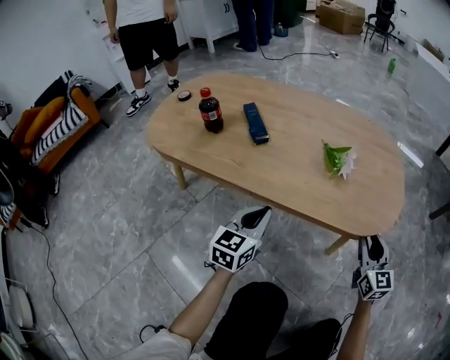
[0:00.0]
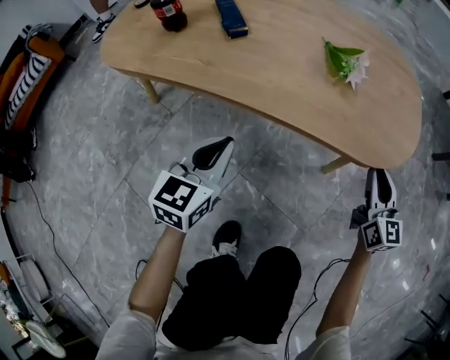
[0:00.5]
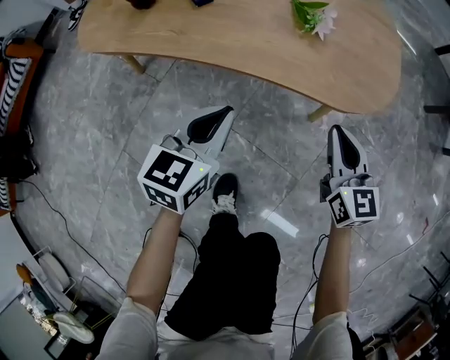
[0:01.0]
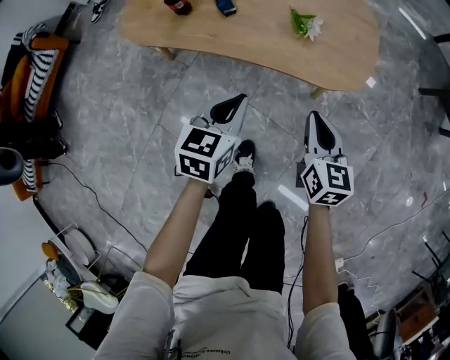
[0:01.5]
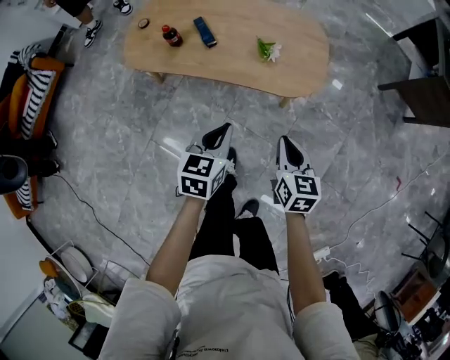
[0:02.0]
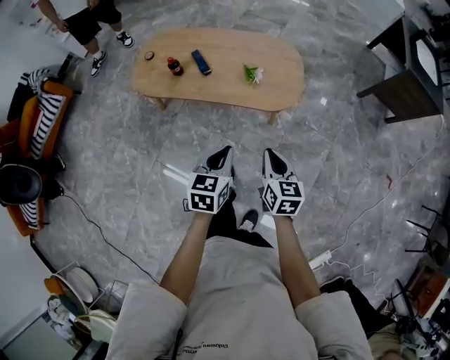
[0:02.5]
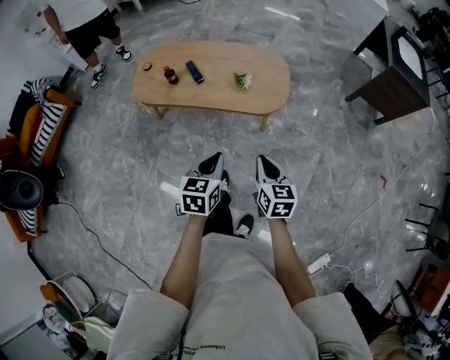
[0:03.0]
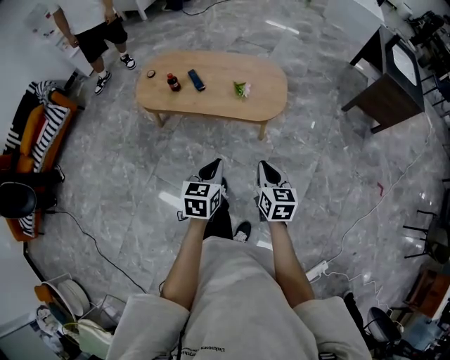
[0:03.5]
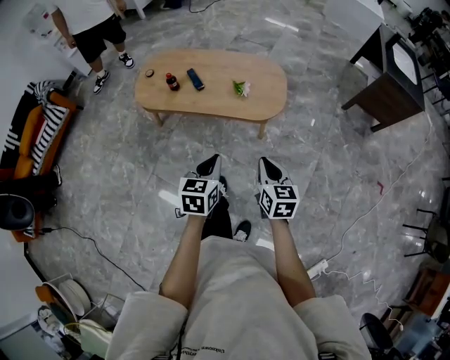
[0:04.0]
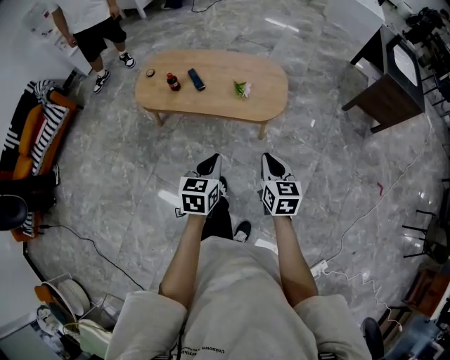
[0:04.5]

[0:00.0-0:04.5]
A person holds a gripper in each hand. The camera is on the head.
0:00.0 to 0:02.0: Both grippers travel together upward and backward, some 40 cm. The right gripper turns by some 30 degrees, and closes up; the left gripper changes its angle by about 20 degrees.
0:02.0 to 0:04.5: The grippers both shift upward and backward by approximately 20 cm.

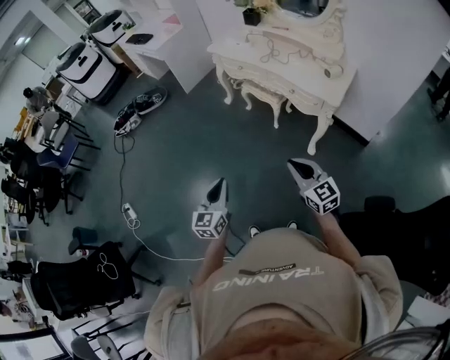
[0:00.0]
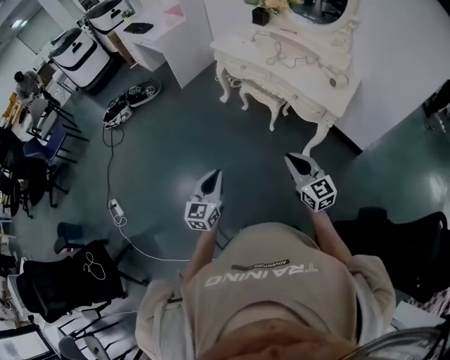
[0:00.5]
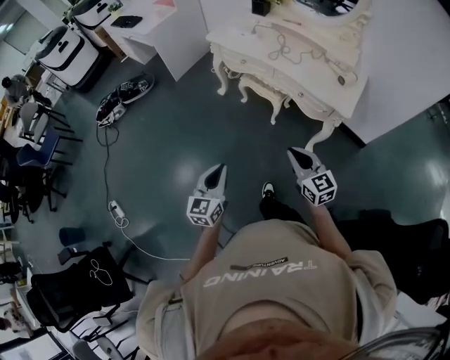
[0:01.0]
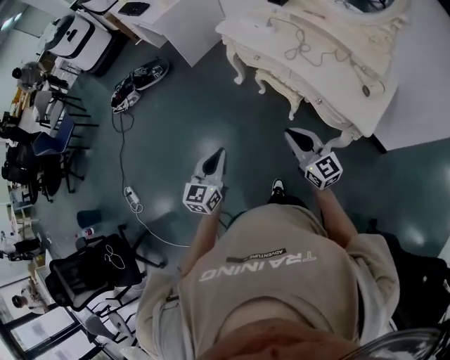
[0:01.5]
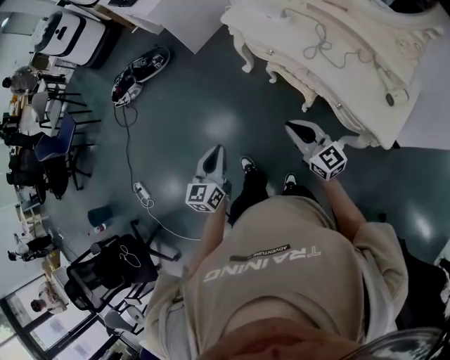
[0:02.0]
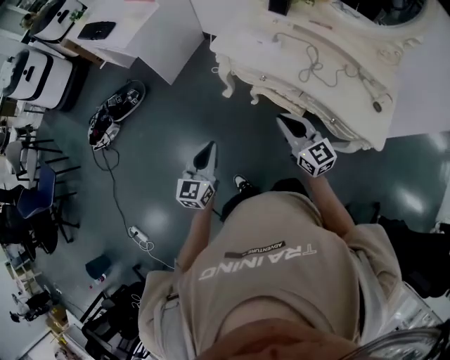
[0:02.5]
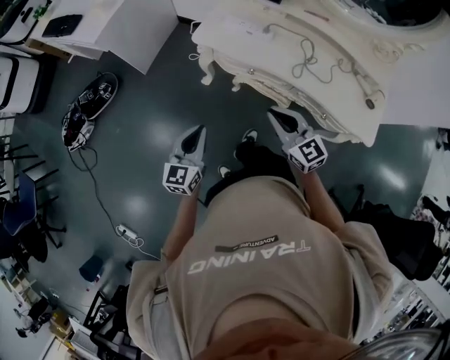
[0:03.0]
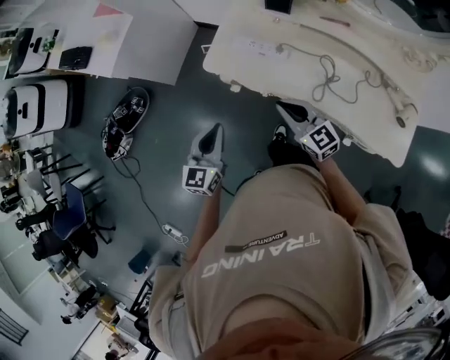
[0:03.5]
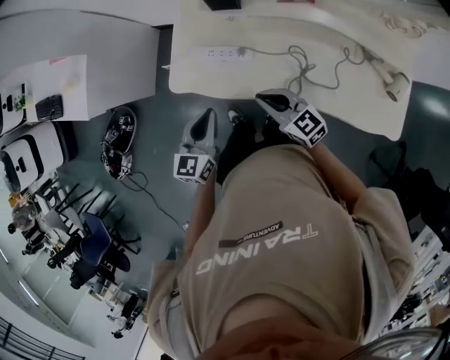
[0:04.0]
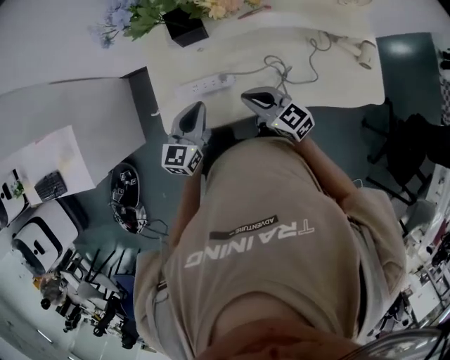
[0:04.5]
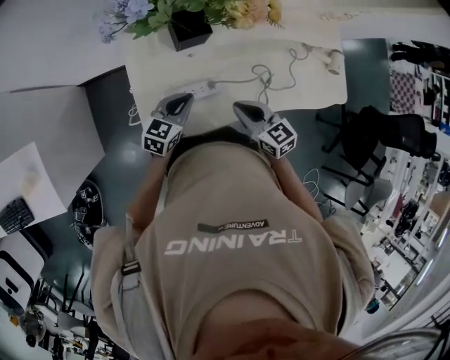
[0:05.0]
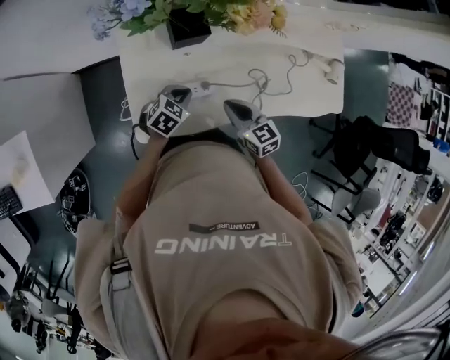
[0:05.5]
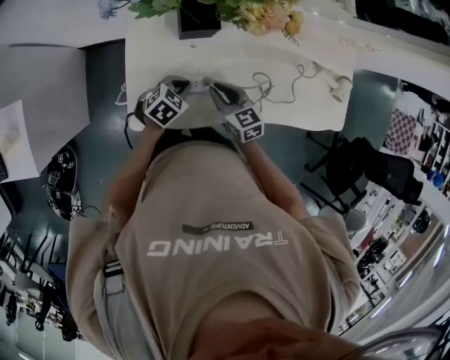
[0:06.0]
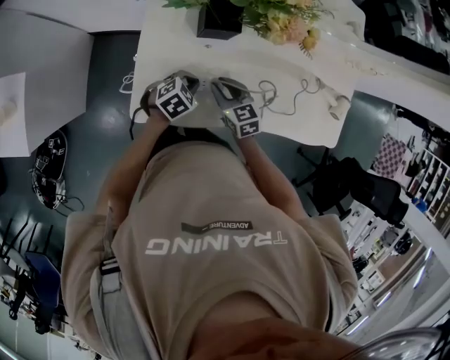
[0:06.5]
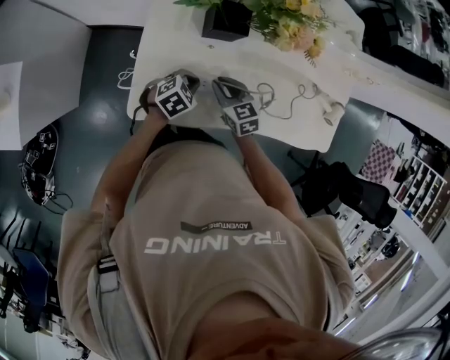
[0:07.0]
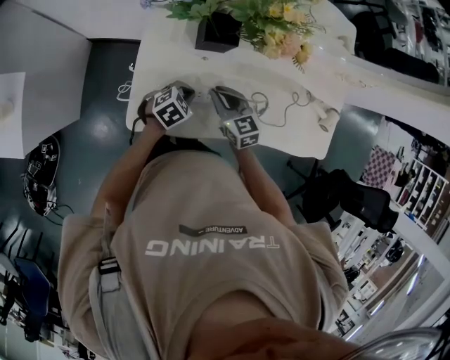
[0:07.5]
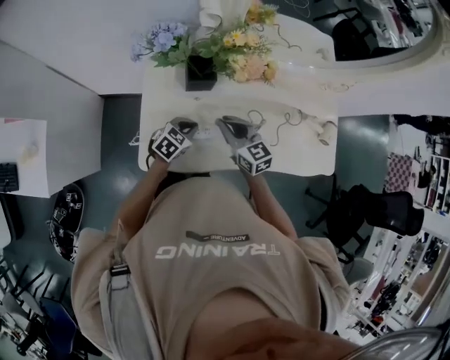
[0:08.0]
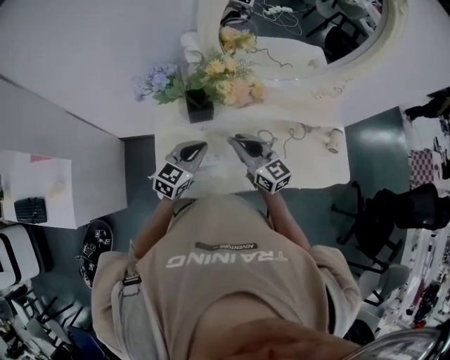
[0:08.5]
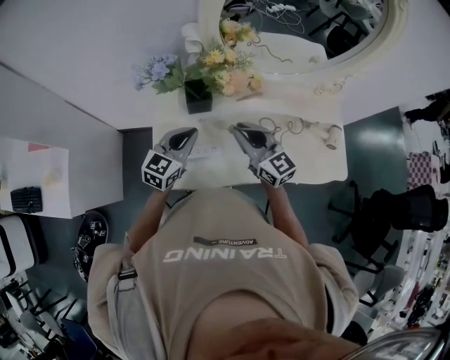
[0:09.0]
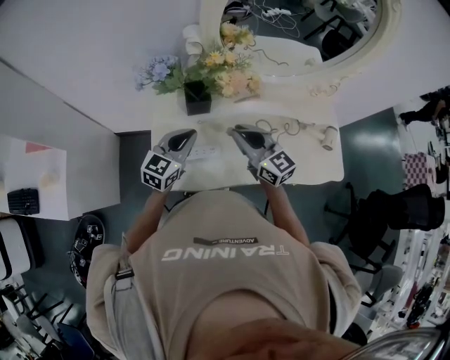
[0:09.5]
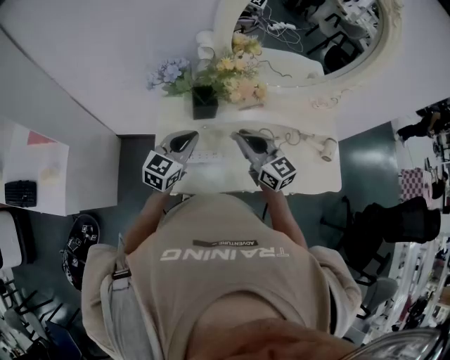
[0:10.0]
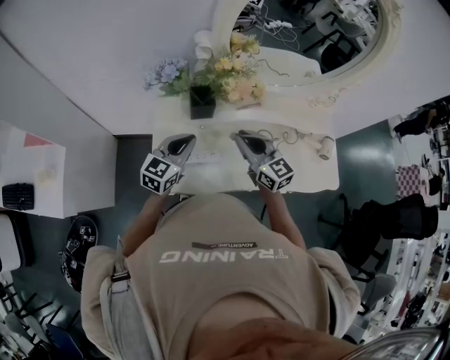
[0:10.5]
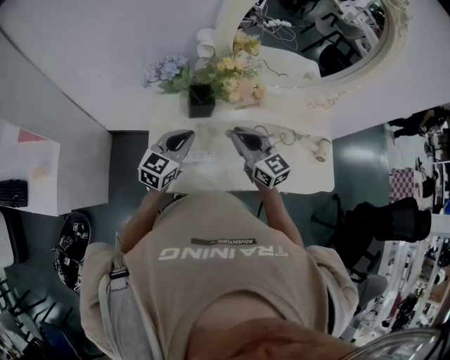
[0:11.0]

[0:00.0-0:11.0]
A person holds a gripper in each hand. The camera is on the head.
0:00.0 to 0:02.0: Both grippers are carried forward, some 50 cm.
0:02.0 to 0:03.5: The two grippers go some 40 cm forward. The left gripper rotates about 30 degrees.
0:03.5 to 0:05.5: The right gripper ends up about 20 cm from where it was, and turns by approximately 40 degrees. The left gripper changes place by some 40 cm, and tilts its fingers some 30 degrees downward.
0:05.5 to 0:07.5: The right gripper heads forward and to the left, covering some 10 cm.
0:07.5 to 0:09.0: Both grippers travel together upward, approximately 25 cm. The left gripper points its fingers roughly 40 degrees further upward. Meanwhile the right gripper rotates some 30 degrees.
0:09.0 to 0:11.0: The grippers stay close to where they were, moving slightly.

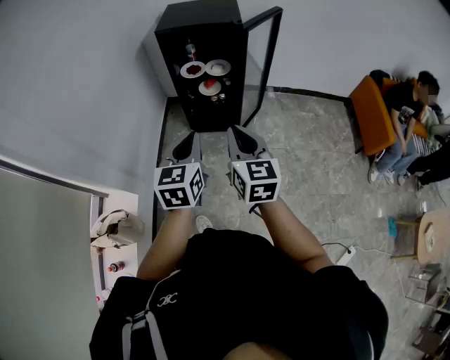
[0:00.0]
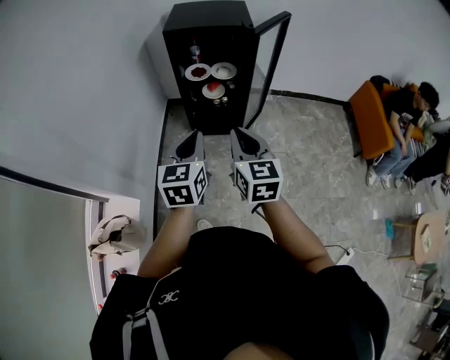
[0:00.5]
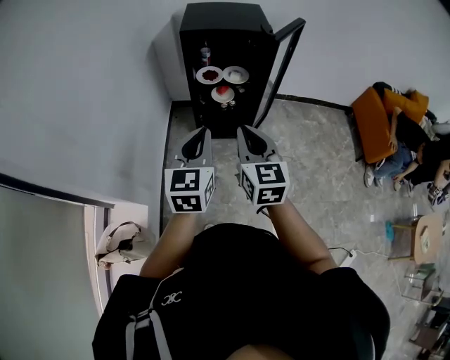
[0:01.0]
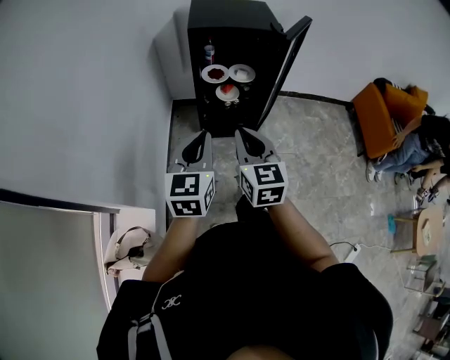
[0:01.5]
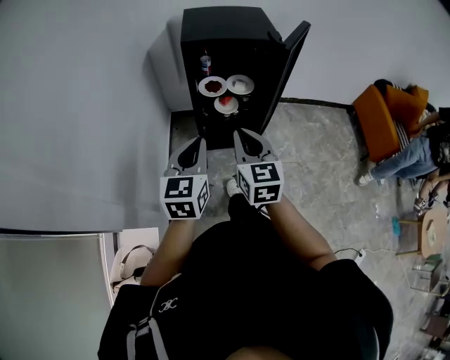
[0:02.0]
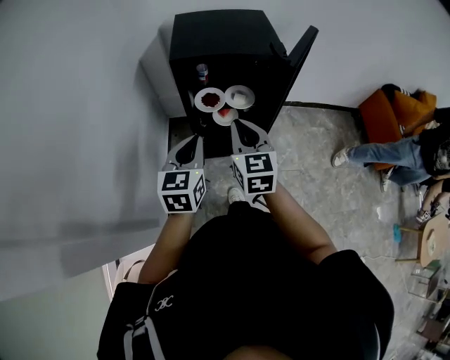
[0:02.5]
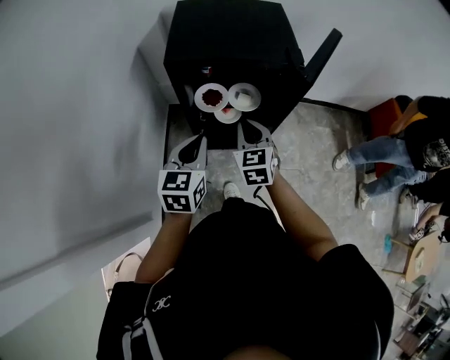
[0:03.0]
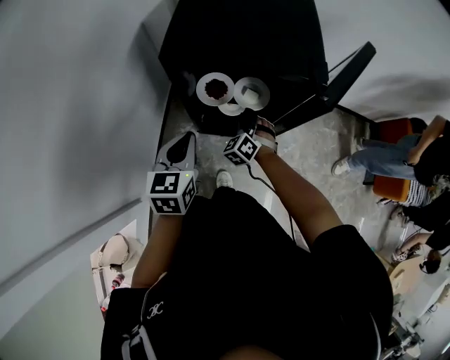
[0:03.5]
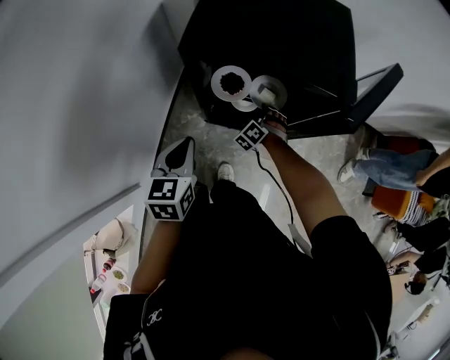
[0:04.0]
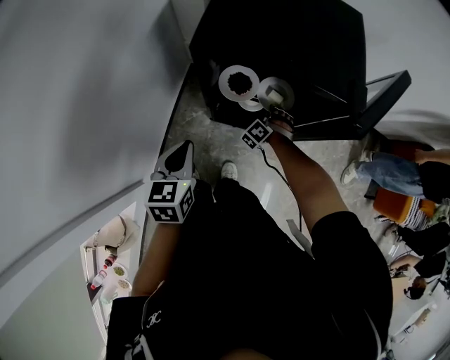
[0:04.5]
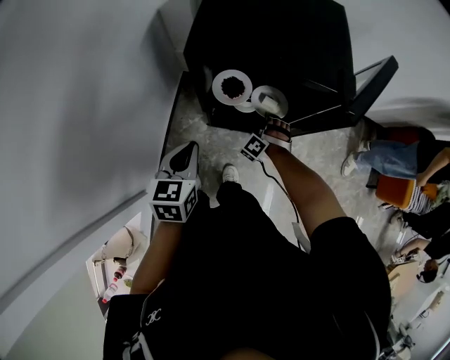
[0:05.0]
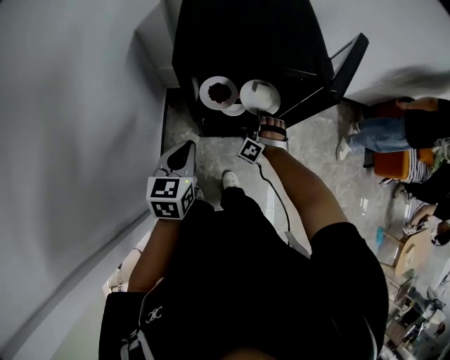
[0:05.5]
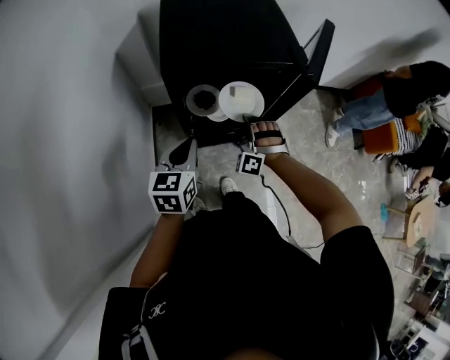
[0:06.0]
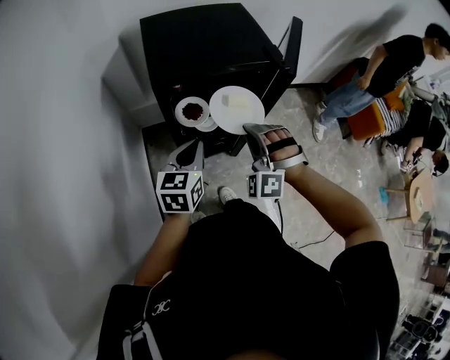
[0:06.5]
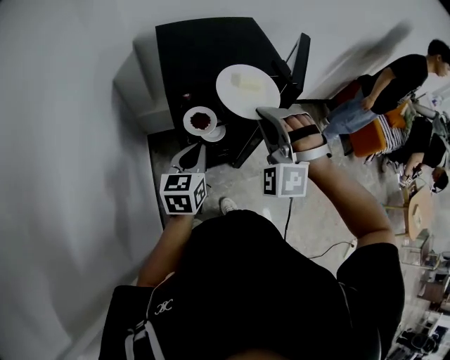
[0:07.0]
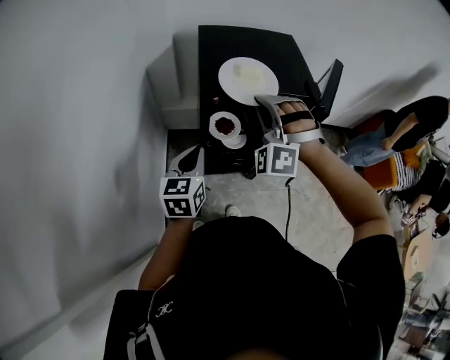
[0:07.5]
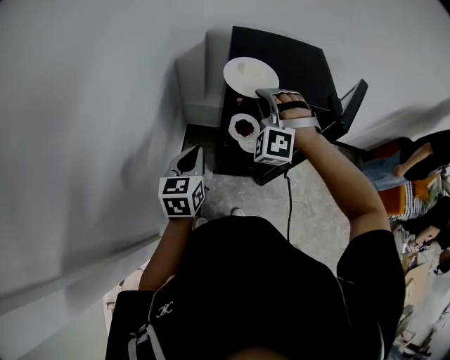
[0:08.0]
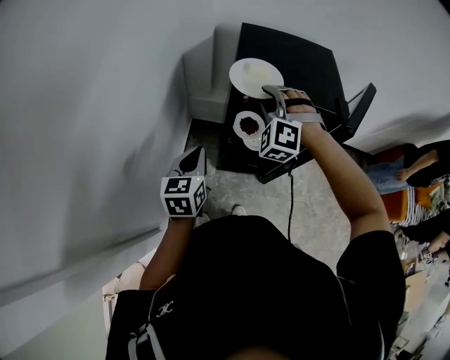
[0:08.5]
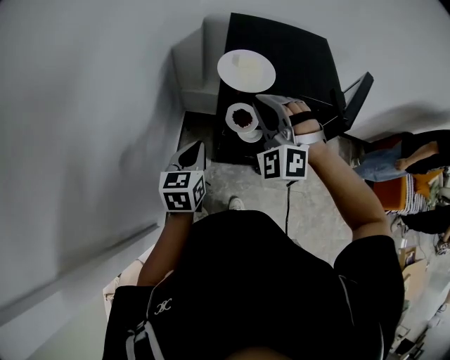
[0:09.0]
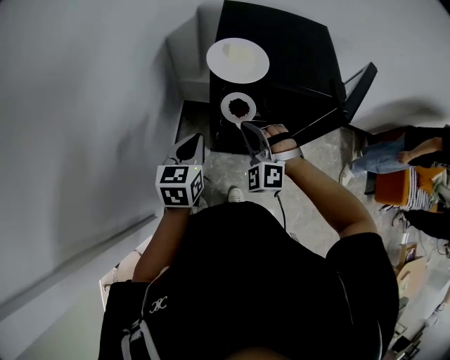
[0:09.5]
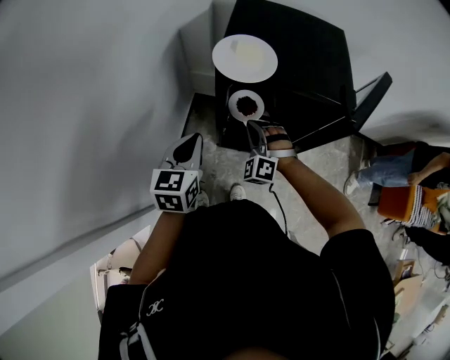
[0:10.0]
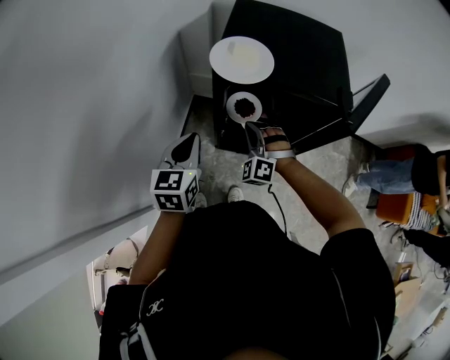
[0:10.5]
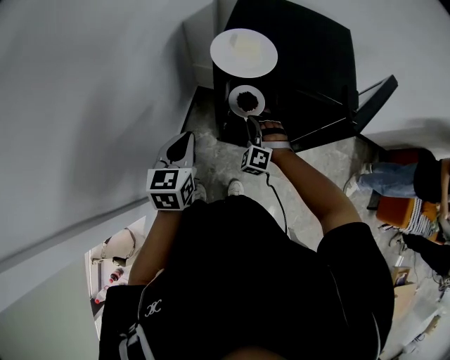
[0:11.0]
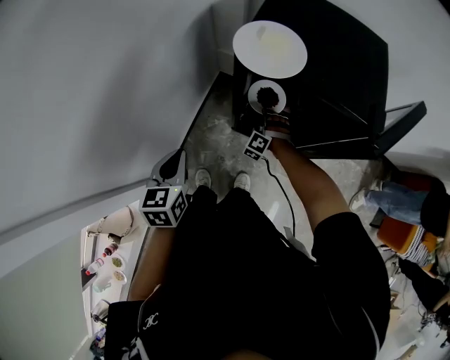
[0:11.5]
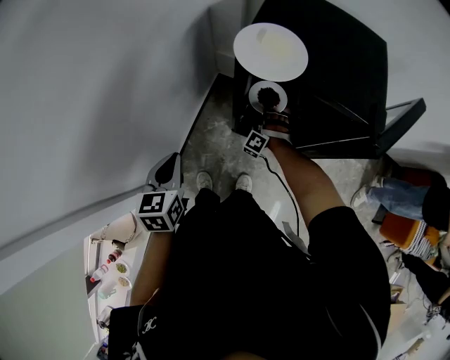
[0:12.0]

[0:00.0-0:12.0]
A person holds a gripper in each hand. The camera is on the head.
0:00.0 to 0:02.0: The left gripper moves some 20 cm.
0:02.0 to 0:04.0: The left gripper shifts by roughly 25 cm, and swivels approximately 30 degrees.
0:04.0 to 0:06.0: The left gripper swivels roughly 20 degrees.
0:06.0 to 0:08.0: The left gripper shifts by approximately 10 cm.
0:10.0 to 0:12.0: The left gripper changes place by roughly 10 cm, and rotates approximately 20 degrees.
